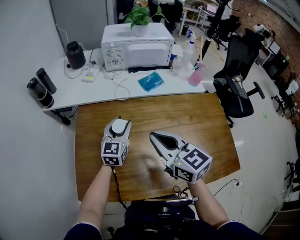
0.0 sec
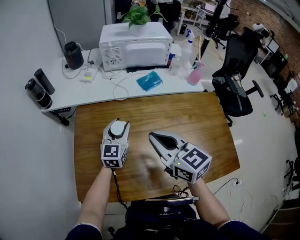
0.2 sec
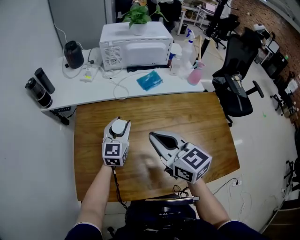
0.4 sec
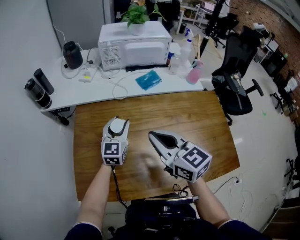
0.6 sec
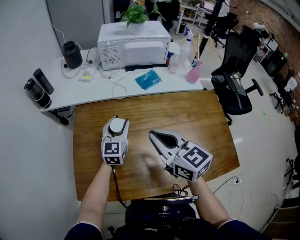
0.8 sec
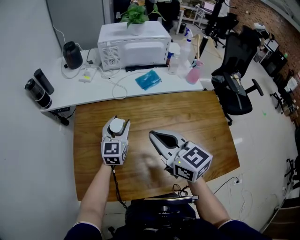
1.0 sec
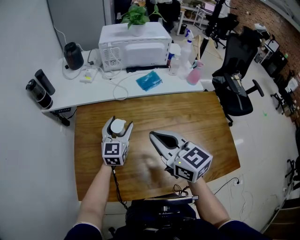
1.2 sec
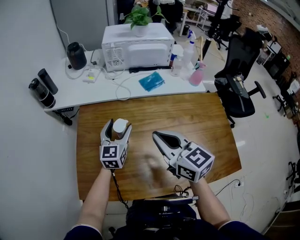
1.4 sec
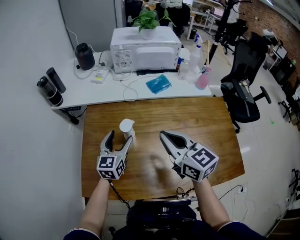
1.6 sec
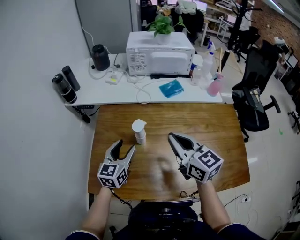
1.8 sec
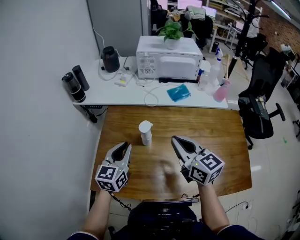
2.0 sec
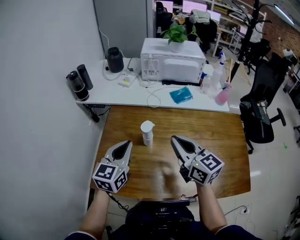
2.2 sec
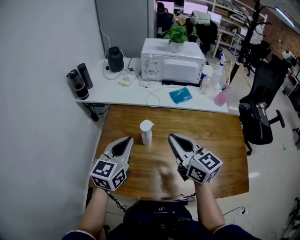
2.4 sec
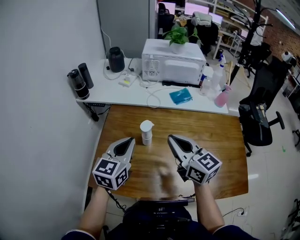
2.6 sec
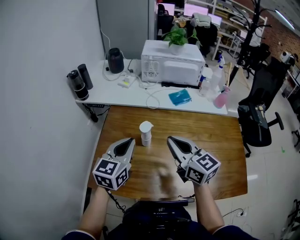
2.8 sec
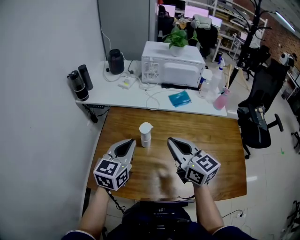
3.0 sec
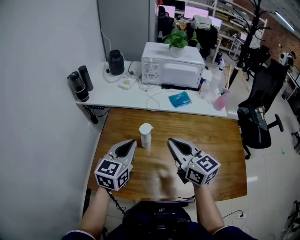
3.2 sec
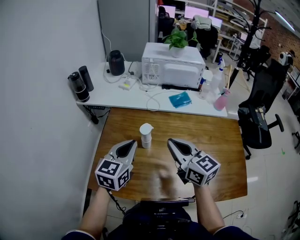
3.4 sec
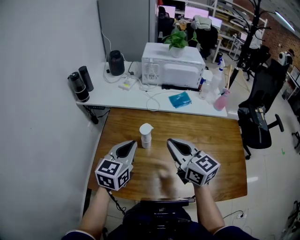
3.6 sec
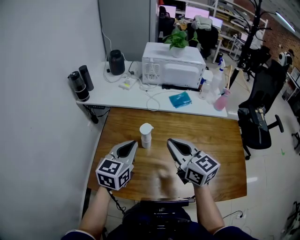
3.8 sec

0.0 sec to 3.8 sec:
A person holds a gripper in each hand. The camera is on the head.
0.0 sec to 1.2 sec: The left gripper opens up.
1.2 sec to 2.6 sec: The left gripper shifts about 20 cm backward, upward and to the left, and closes up.
2.6 sec to 3.8 sec: There are only small adjustments of the grippers.

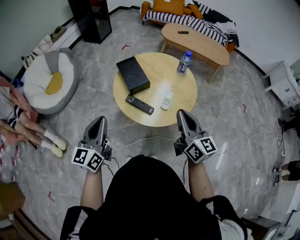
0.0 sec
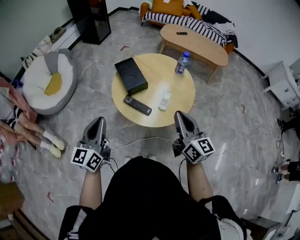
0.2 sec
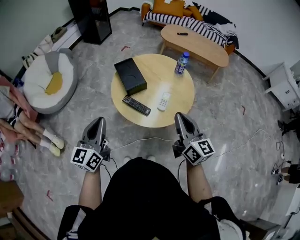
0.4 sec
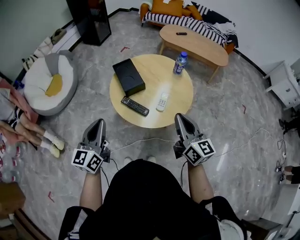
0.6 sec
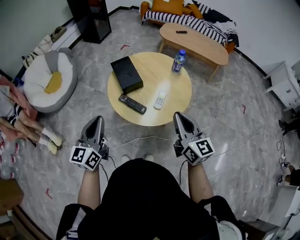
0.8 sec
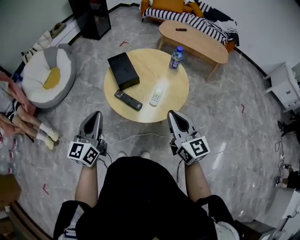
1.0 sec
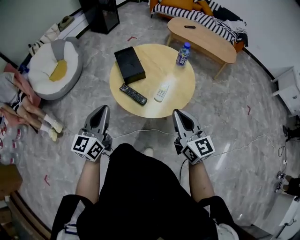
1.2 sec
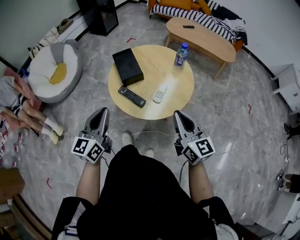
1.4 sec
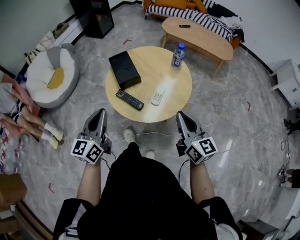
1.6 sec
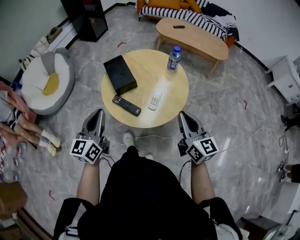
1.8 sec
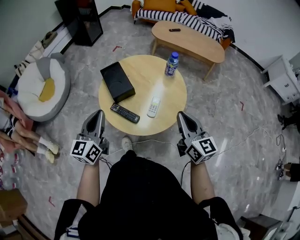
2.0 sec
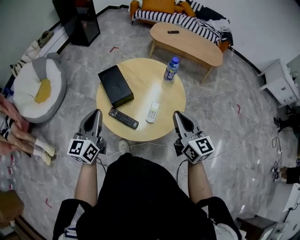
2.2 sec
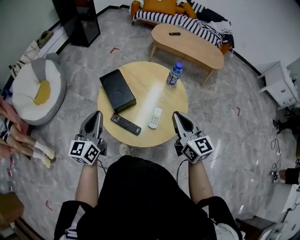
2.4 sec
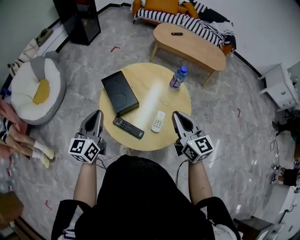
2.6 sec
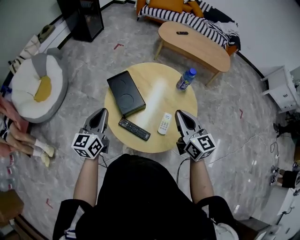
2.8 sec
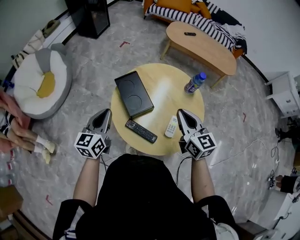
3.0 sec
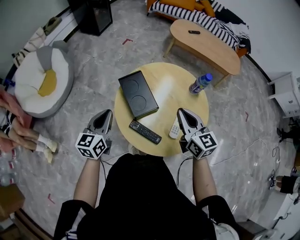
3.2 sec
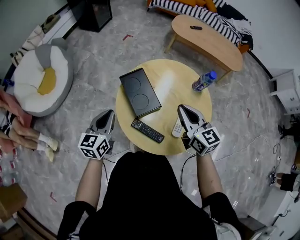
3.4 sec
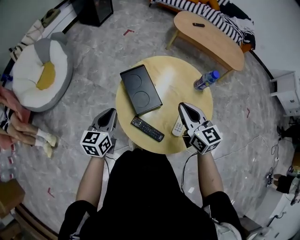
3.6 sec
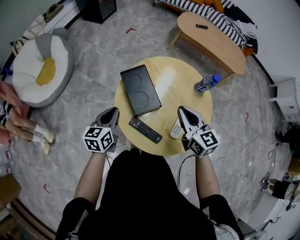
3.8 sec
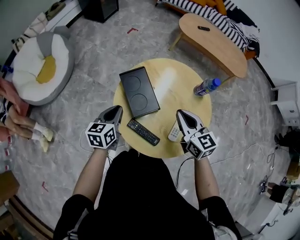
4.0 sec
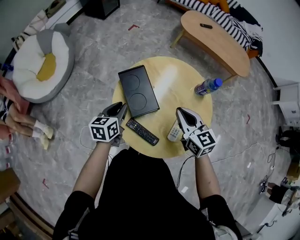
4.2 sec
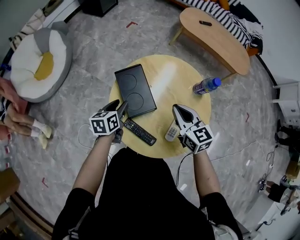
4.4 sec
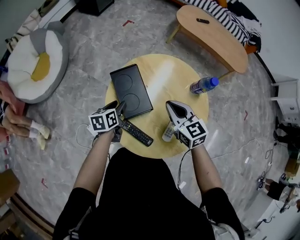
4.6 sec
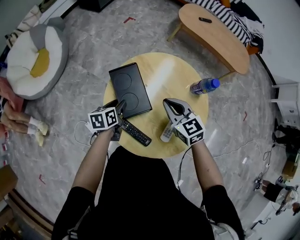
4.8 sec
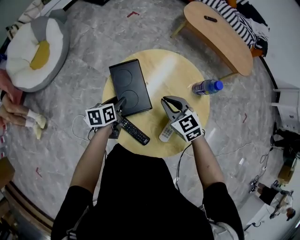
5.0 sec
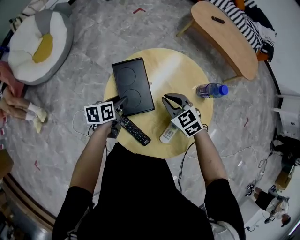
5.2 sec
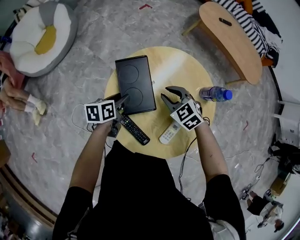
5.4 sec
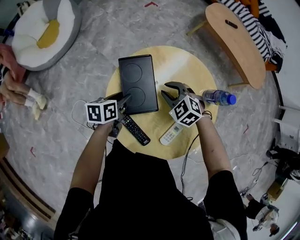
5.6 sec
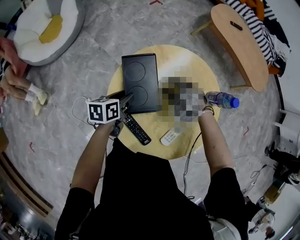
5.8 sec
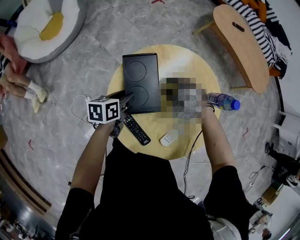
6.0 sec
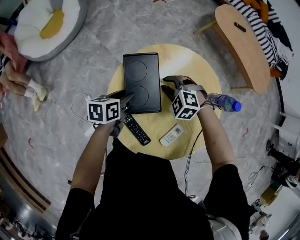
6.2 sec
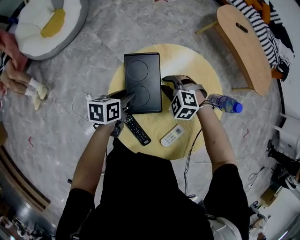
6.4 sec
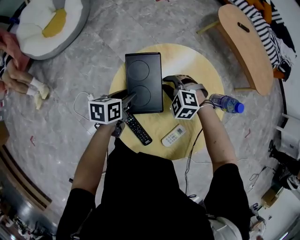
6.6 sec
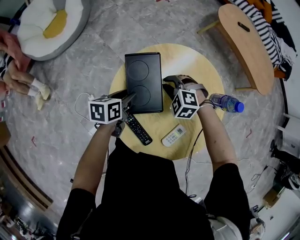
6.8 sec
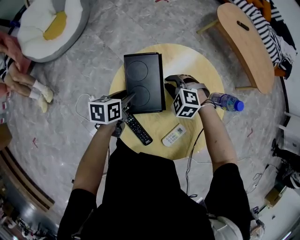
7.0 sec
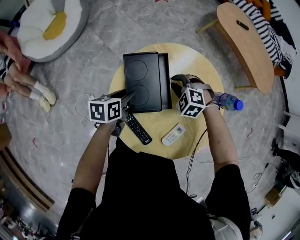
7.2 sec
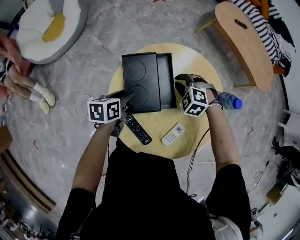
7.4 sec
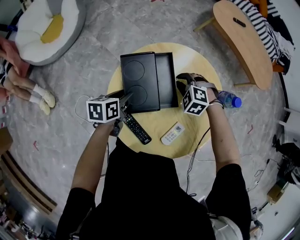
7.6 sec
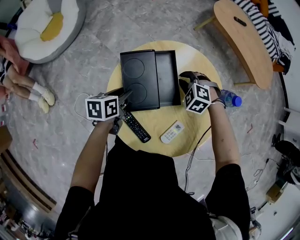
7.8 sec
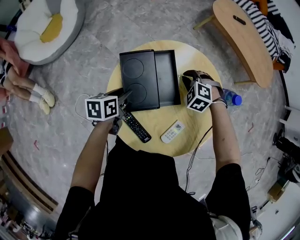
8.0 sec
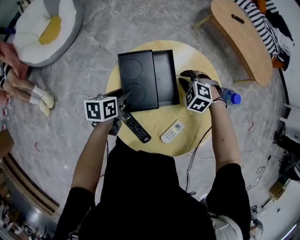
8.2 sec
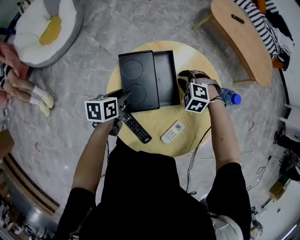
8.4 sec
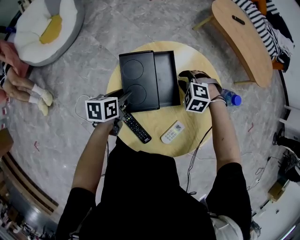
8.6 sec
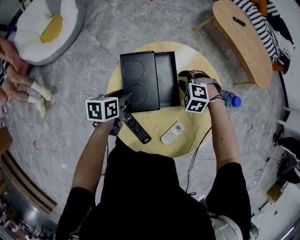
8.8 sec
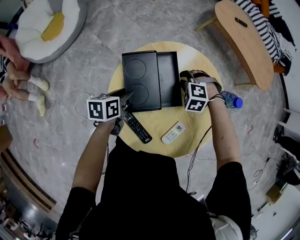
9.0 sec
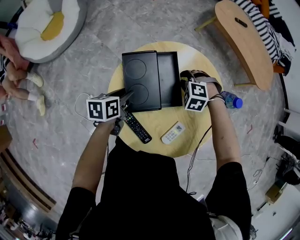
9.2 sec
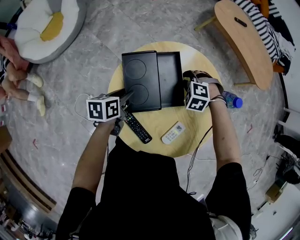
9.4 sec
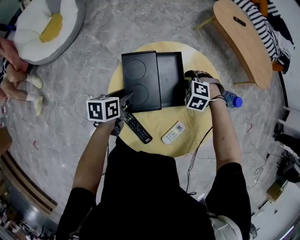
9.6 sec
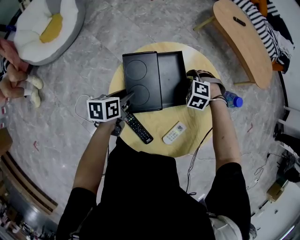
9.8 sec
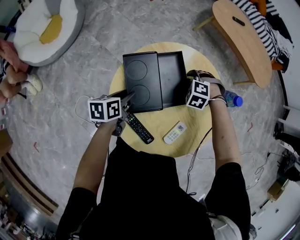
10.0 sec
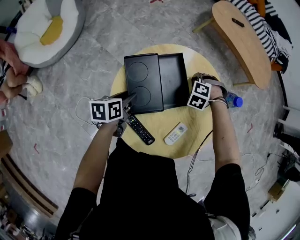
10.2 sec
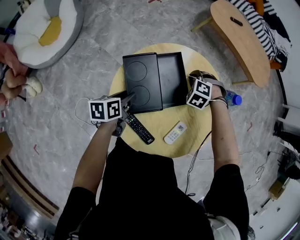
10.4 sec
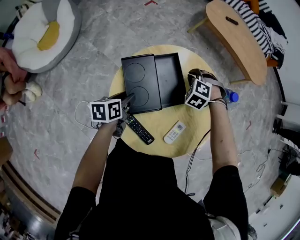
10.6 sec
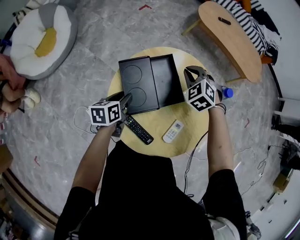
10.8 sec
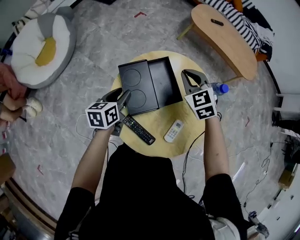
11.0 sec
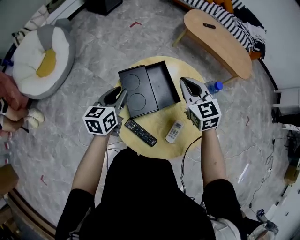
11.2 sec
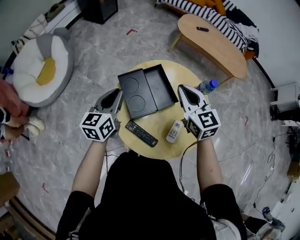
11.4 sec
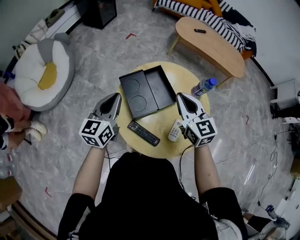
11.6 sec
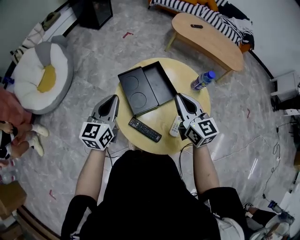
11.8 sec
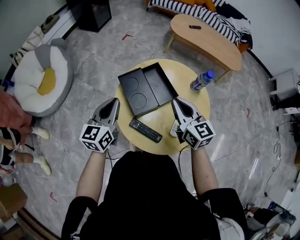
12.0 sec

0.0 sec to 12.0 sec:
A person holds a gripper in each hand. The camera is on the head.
0.0 sec to 1.6 sec: The grippers both shift to the right by roughly 10 cm.
1.6 sec to 3.0 sec: The right gripper goes some 25 cm forward and to the left. The left gripper shifts about 20 cm forward.
3.0 sec to 4.4 sec: The right gripper shifts roughly 10 cm forward and downward; the left gripper goes roughly 15 cm downward and forward, changes its angle by roughly 30 degrees, and opens its fingers.
4.4 sec to 6.0 sec: The right gripper goes some 20 cm downward and forward, and twists roughly 60 degrees counterclockwise, seen from behind; the left gripper changes place by approximately 5 cm.
6.0 sec to 7.6 sec: The right gripper goes roughly 5 cm to the right.
7.6 sec to 9.0 sec: The grippers make only small movements.
9.0 sec to 10.4 sec: The right gripper moves some 5 cm.
10.4 sec to 12.0 sec: The right gripper shifts about 30 cm upward and backward, and angles its fingers upward, by some 60 degrees. The left gripper goes roughly 20 cm upward, tips its fingers upward by some 30 degrees, and closes.

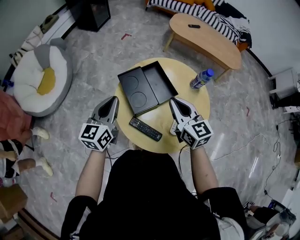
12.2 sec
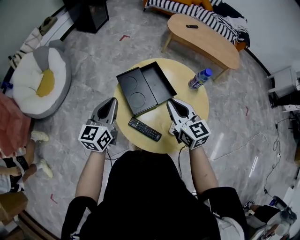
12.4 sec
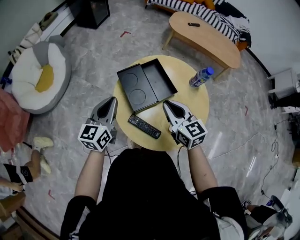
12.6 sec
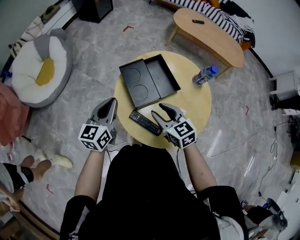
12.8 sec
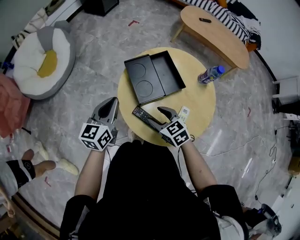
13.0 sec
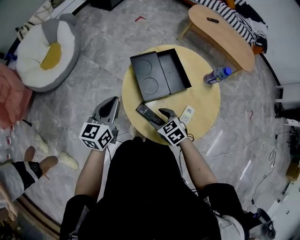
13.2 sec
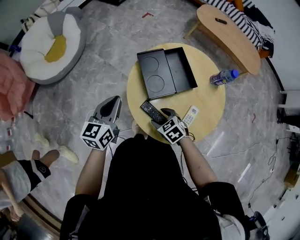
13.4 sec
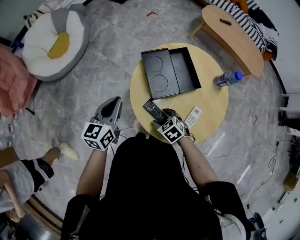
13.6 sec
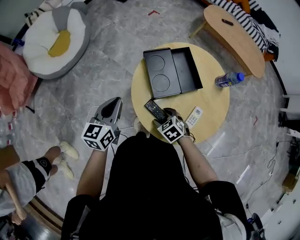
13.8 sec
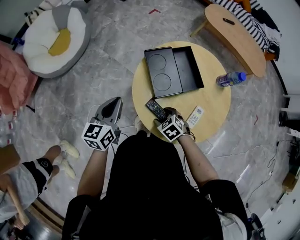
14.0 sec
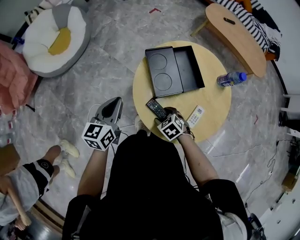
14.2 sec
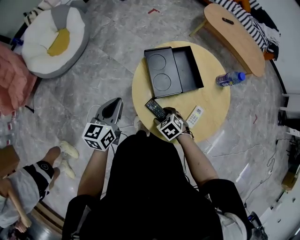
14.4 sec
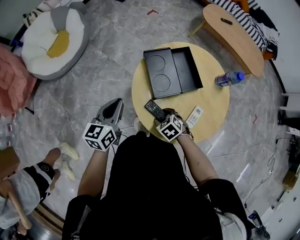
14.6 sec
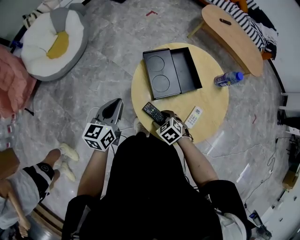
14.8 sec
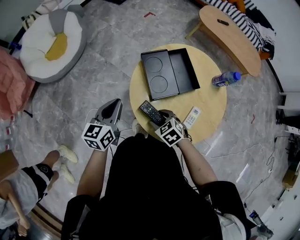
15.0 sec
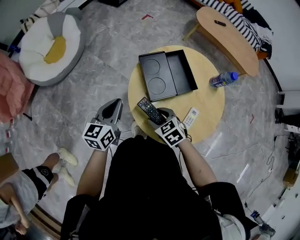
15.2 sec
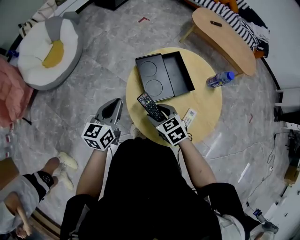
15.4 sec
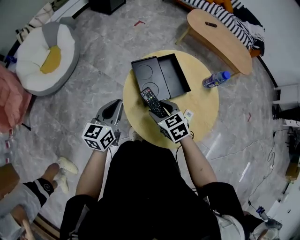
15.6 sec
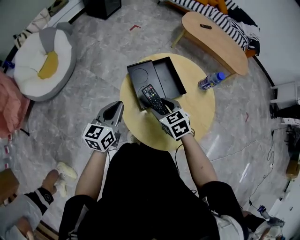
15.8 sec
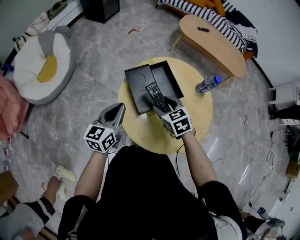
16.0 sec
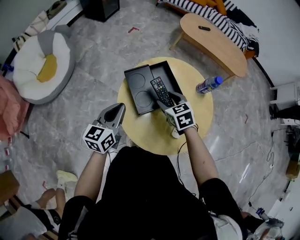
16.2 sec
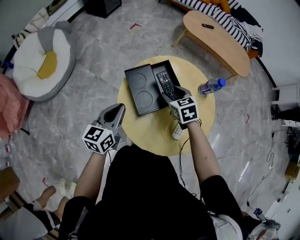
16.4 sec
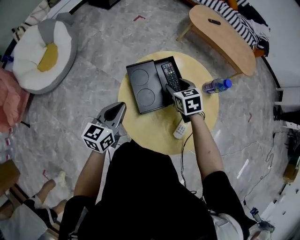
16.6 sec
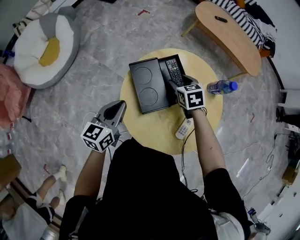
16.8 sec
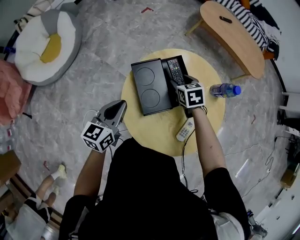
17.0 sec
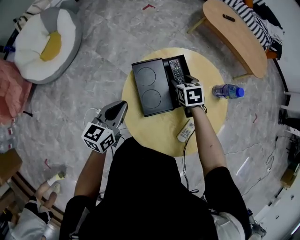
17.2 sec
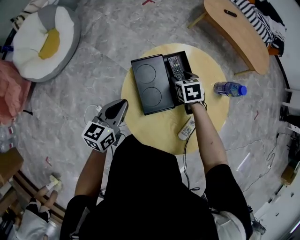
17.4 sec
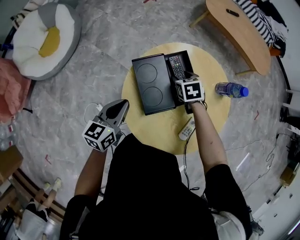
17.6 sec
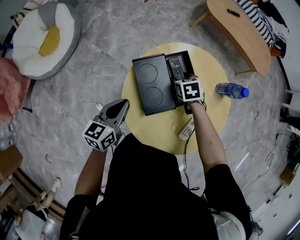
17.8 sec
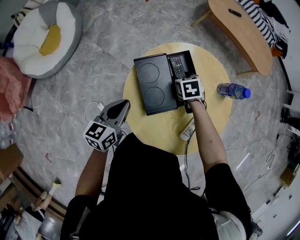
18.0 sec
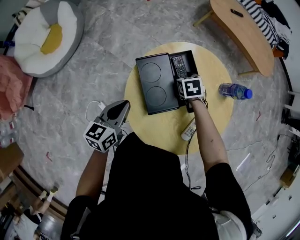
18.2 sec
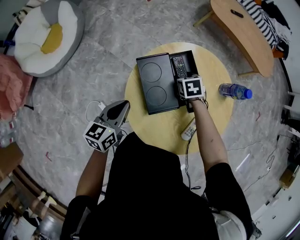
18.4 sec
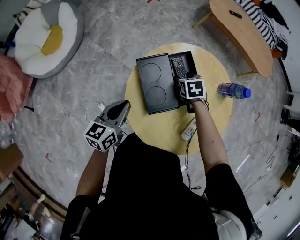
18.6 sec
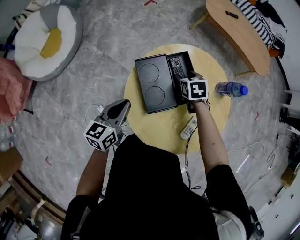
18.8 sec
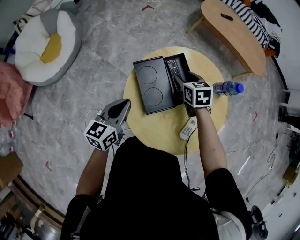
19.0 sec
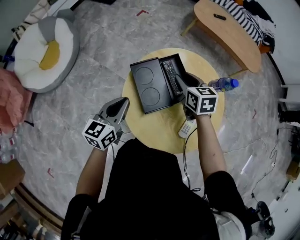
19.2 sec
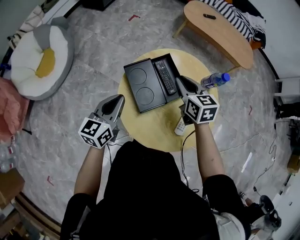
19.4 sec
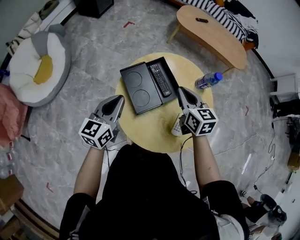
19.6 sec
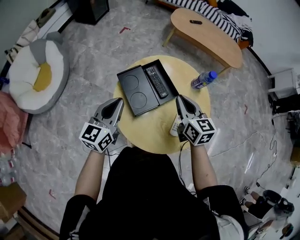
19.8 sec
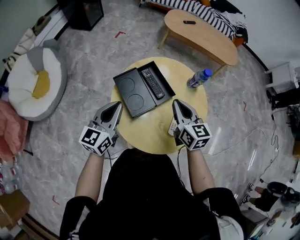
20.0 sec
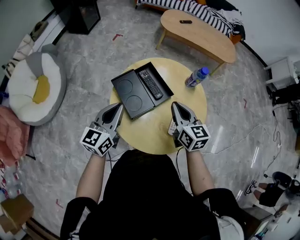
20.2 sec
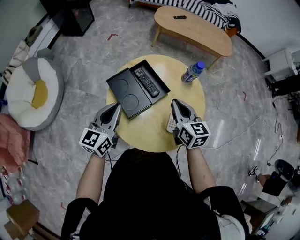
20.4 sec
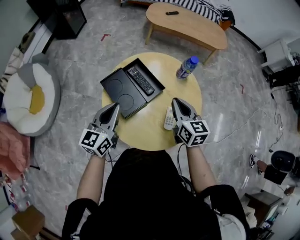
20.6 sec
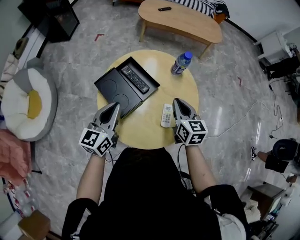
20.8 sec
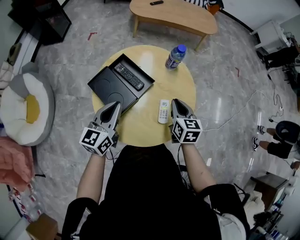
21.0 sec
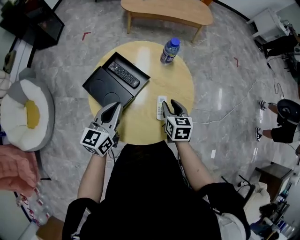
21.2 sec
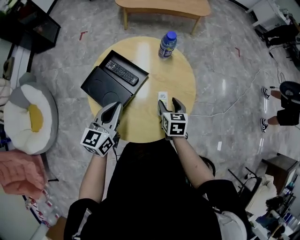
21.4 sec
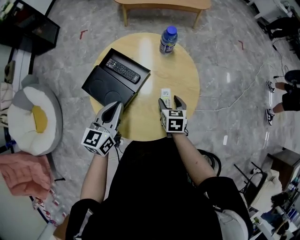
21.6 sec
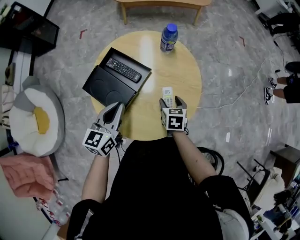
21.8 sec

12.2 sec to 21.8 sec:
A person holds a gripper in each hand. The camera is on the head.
12.2 sec to 13.8 sec: The right gripper goes about 30 cm downward and to the left, angles its fingers downward, by some 50 degrees, and opens its fingers, while the left gripper moves to the left, downward and backward, roughly 15 cm.
13.8 sec to 15.4 sec: The right gripper shifts some 10 cm upward.
15.4 sec to 17.0 sec: The left gripper shifts roughly 5 cm forward; the right gripper moves forward and to the right, roughly 25 cm.
17.0 sec to 18.6 sec: The right gripper heads downward, covering some 5 cm.
18.6 sec to 20.2 sec: The left gripper travels upward and to the right by some 15 cm, and turns by some 20 degrees; the right gripper travels upward and backward by about 25 cm, tips its fingers upward by roughly 40 degrees, and closes up.
20.2 sec to 21.8 sec: The right gripper moves downward, roughly 20 cm, tilts its fingers about 30 degrees downward, and opens. The left gripper moves some 10 cm, and rotates some 20 degrees.
